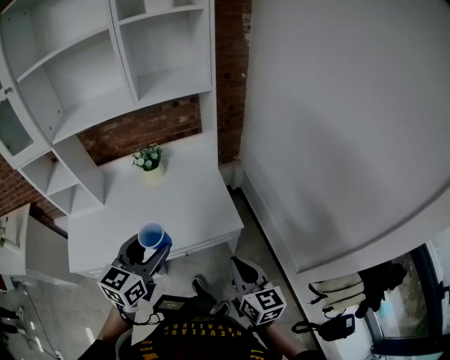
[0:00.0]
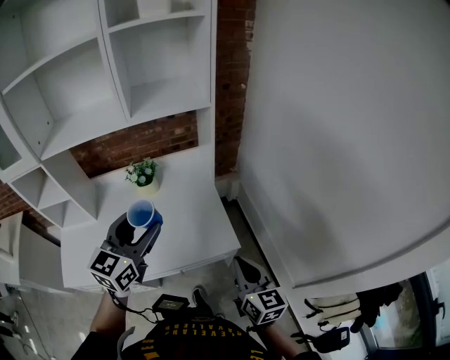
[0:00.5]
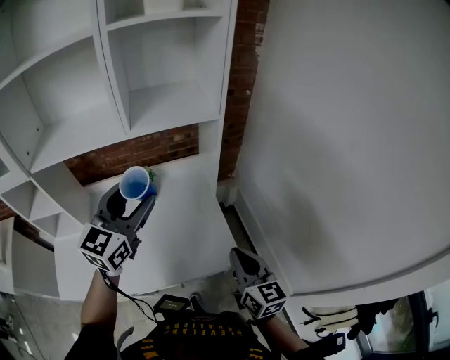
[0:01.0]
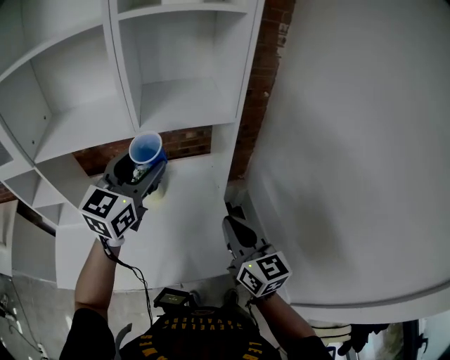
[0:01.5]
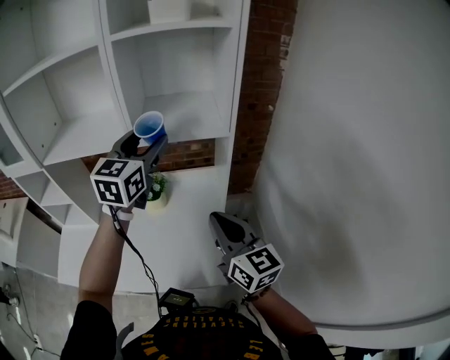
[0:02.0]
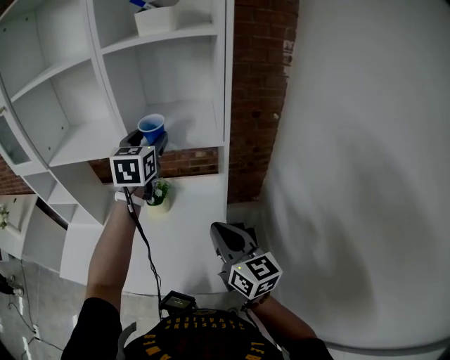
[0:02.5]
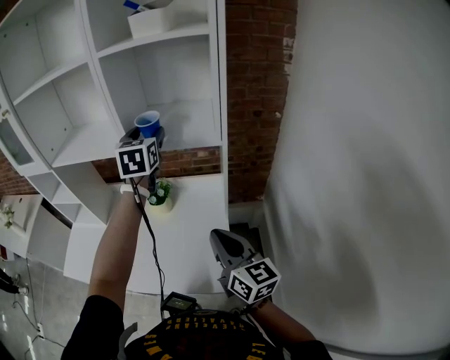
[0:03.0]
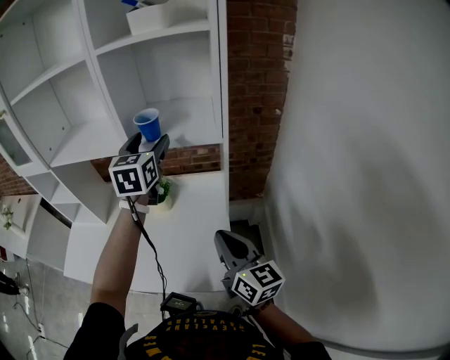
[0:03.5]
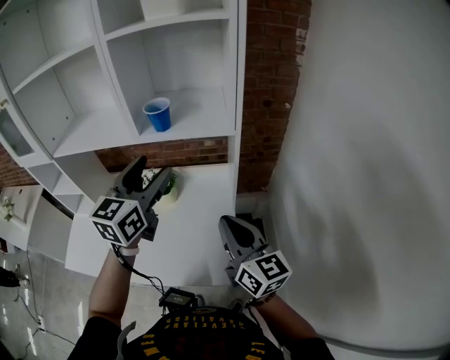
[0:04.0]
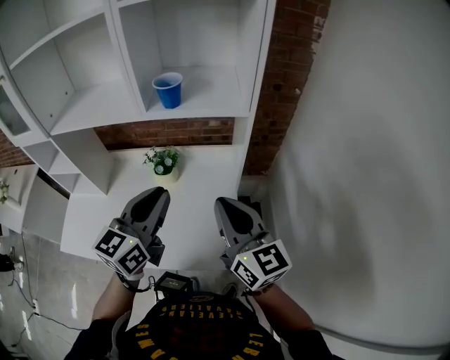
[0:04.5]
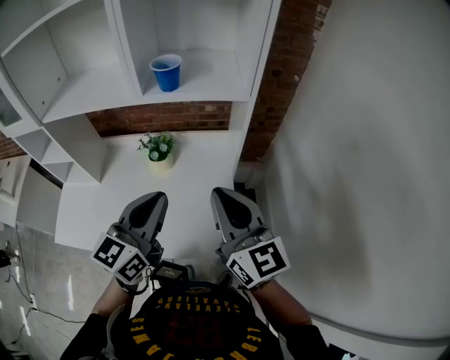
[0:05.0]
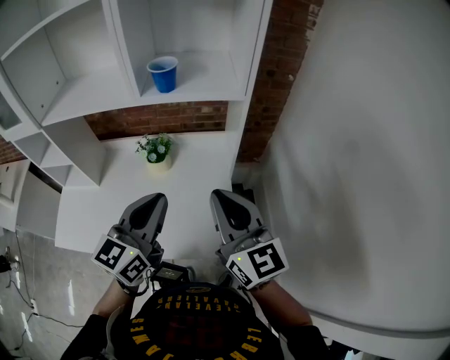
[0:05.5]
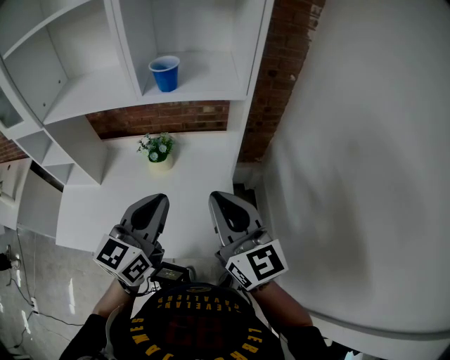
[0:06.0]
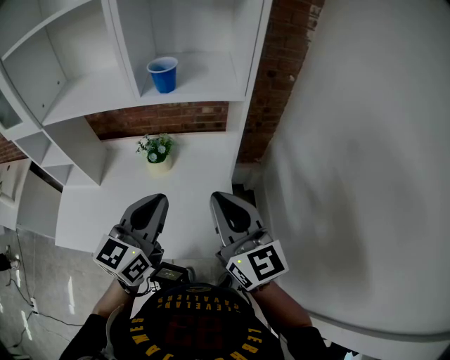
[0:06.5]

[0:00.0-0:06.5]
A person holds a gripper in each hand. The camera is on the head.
0:00.0 to 0:02.0: The two grippers go approximately 40 cm forward and upward. The right gripper turns by some 20 degrees. The left gripper changes its angle by roughly 20 degrees.
0:02.0 to 0:04.5: The left gripper heads backward and downward, covering roughly 20 cm, and closes up.
0:04.5 to 0:06.5: The grippers move only a little.

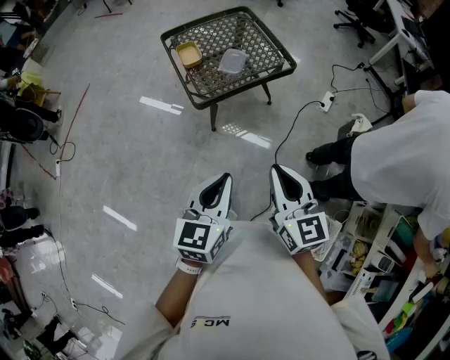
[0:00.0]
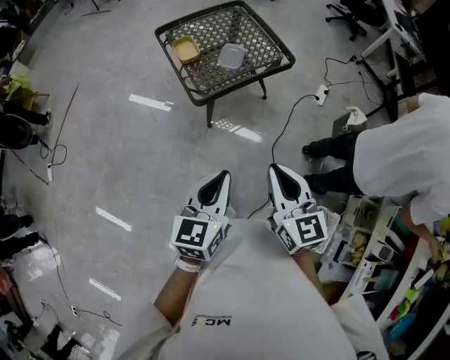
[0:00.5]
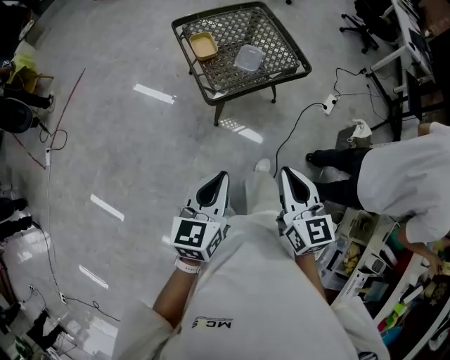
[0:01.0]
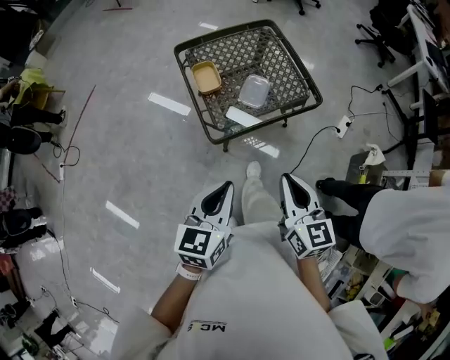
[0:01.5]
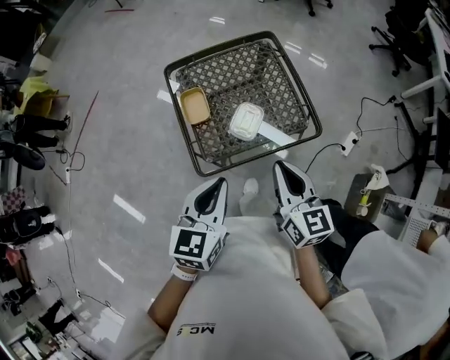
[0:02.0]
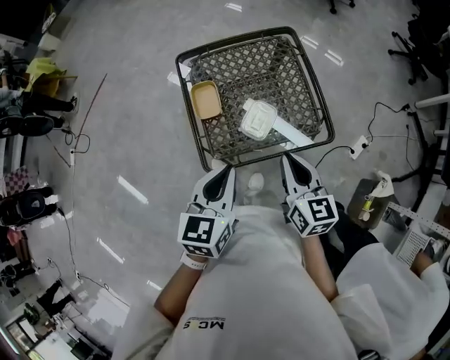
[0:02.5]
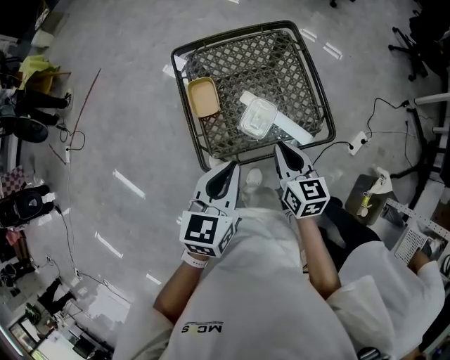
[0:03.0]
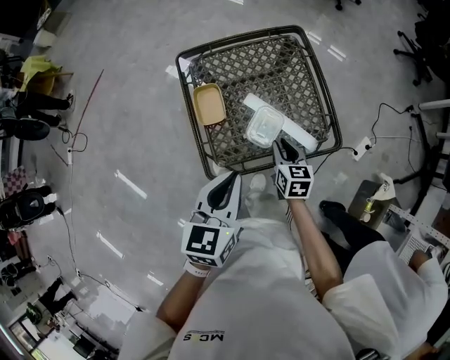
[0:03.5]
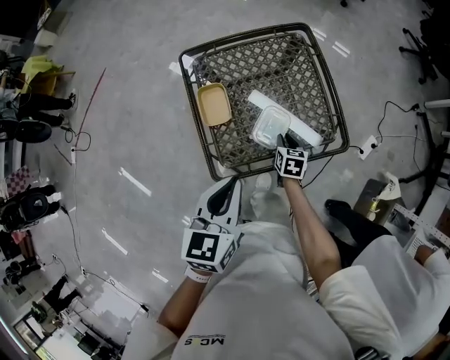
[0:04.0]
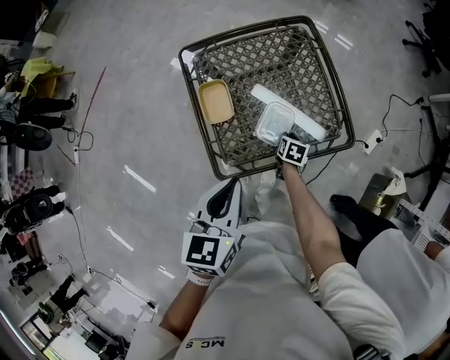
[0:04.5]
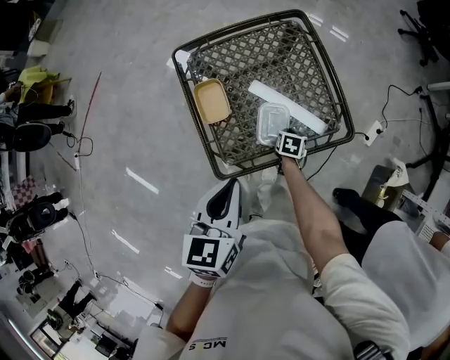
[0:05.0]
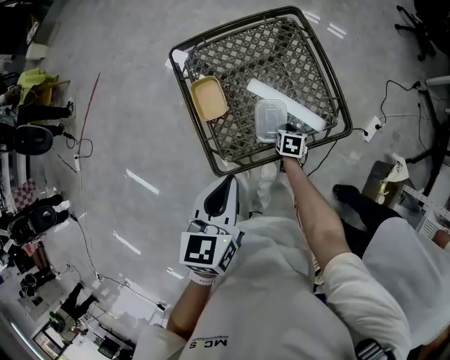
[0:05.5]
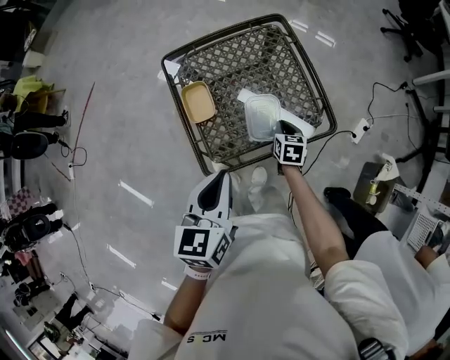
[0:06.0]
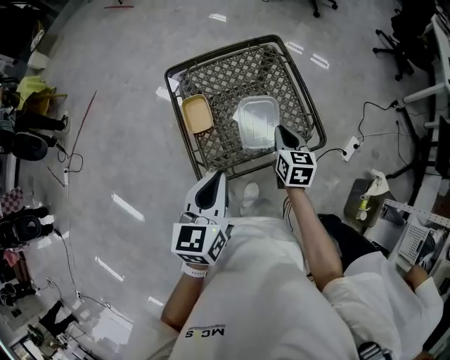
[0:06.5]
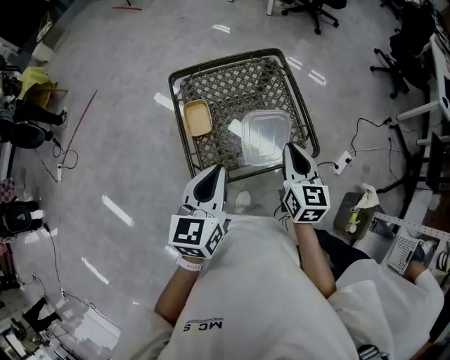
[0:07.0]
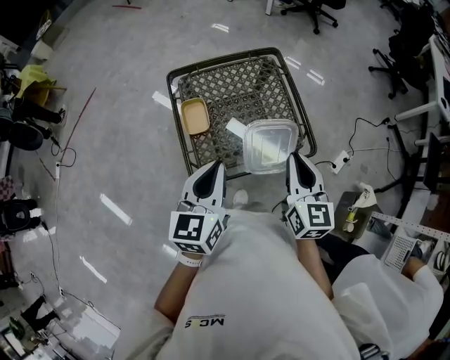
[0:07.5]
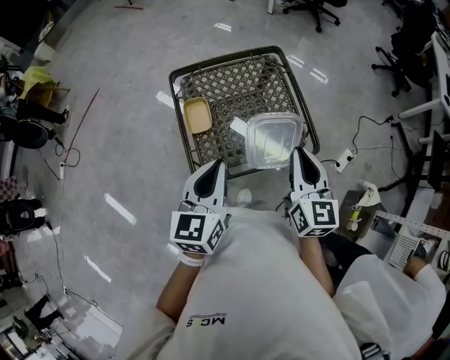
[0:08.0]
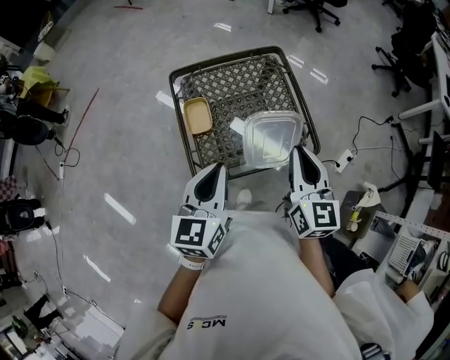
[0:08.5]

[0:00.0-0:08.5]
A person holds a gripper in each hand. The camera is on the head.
0:00.0 to 0:02.0: Both grippers travel together forward, about 40 cm.
0:02.0 to 0:04.0: The right gripper shifts some 35 cm downward and forward, and angles its fingers downward, by approximately 40 degrees, while the left gripper moves forward, roughly 10 cm.
0:04.0 to 0:06.5: The right gripper shifts approximately 15 cm upward.
0:06.5 to 0:08.5: The right gripper is displaced upward and backward by about 20 cm, and swivels some 20 degrees.

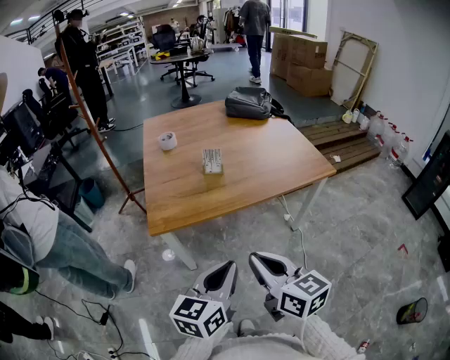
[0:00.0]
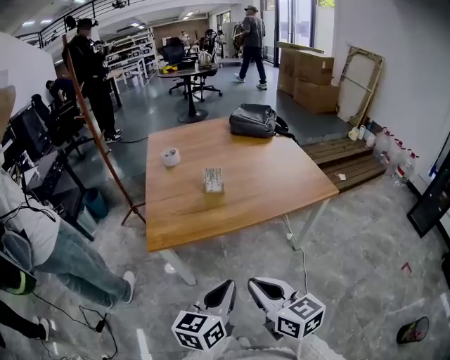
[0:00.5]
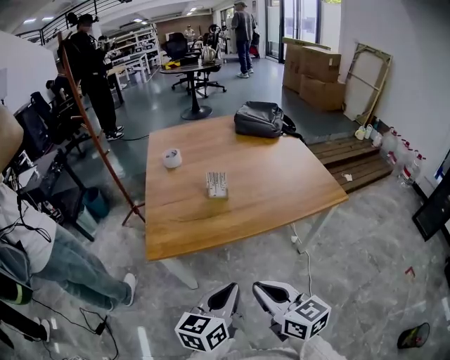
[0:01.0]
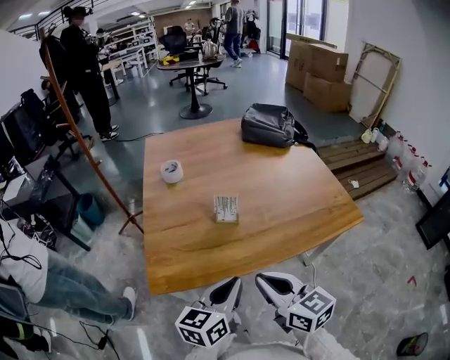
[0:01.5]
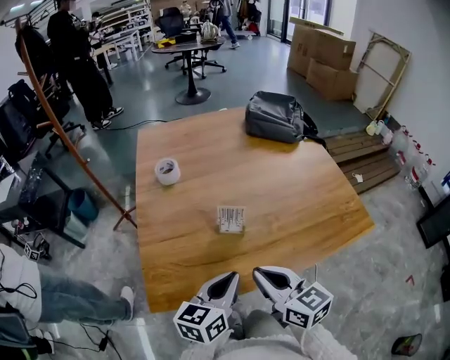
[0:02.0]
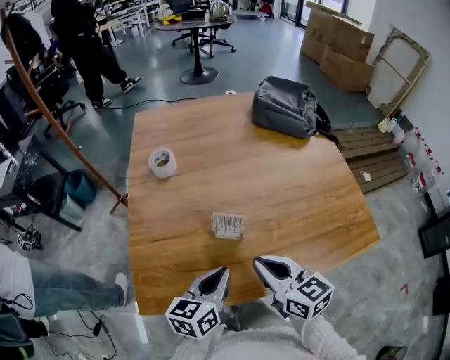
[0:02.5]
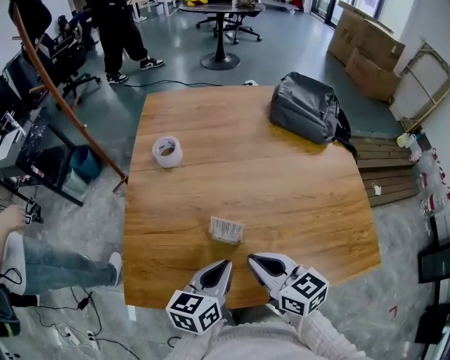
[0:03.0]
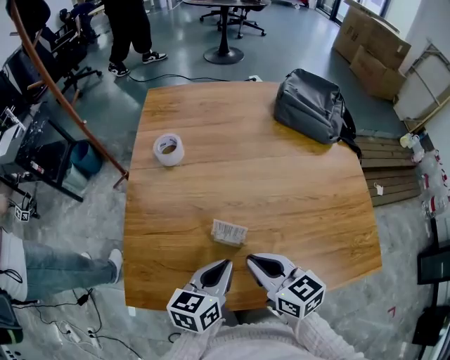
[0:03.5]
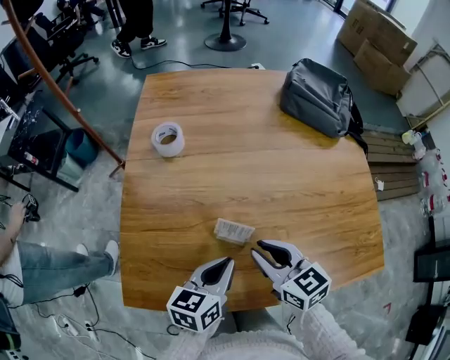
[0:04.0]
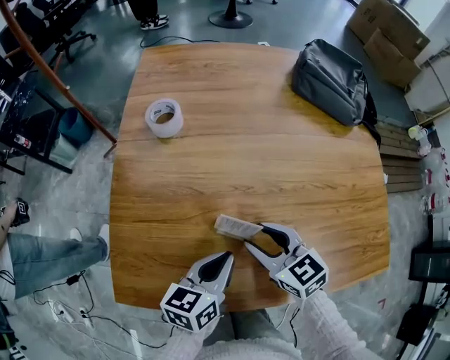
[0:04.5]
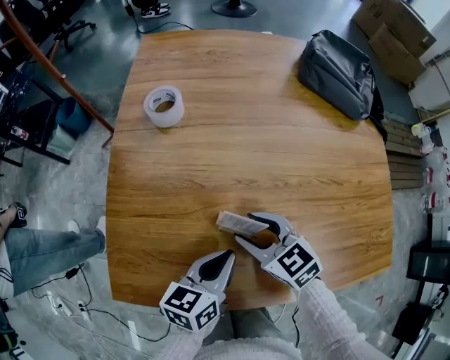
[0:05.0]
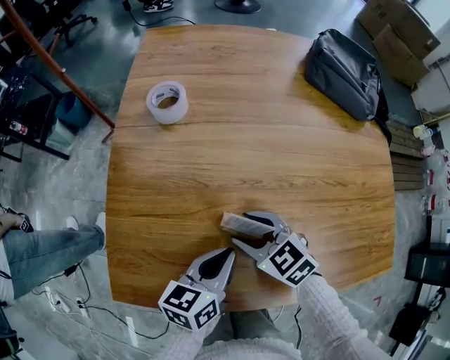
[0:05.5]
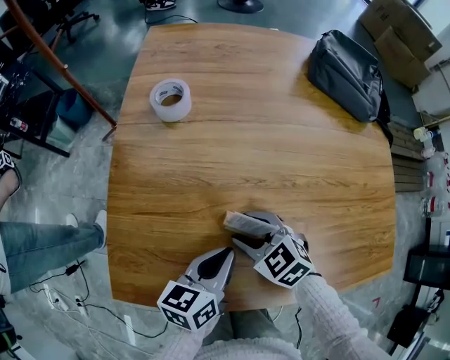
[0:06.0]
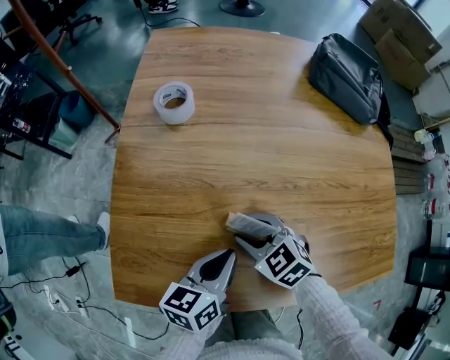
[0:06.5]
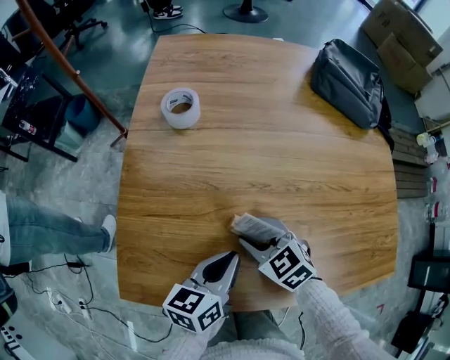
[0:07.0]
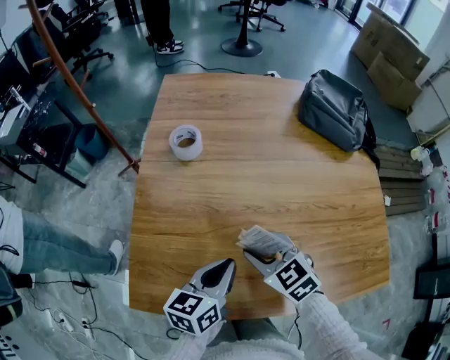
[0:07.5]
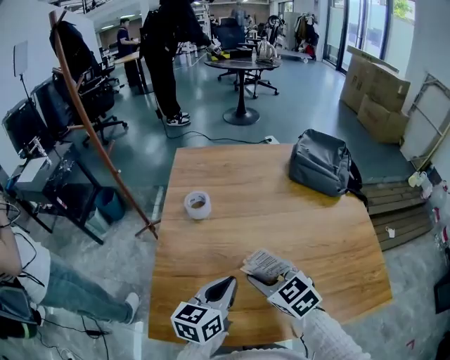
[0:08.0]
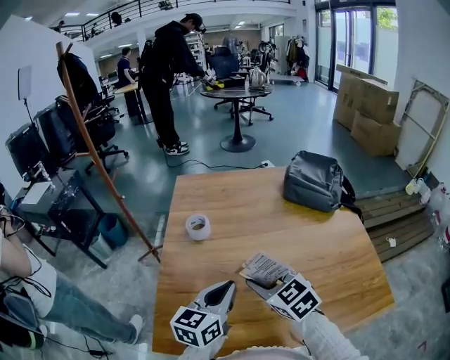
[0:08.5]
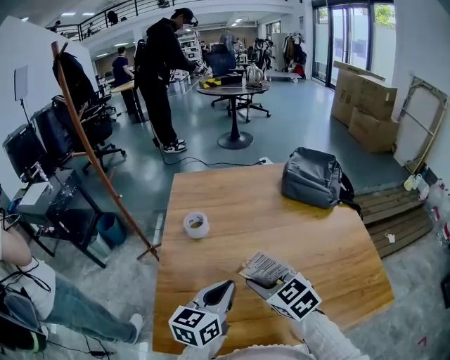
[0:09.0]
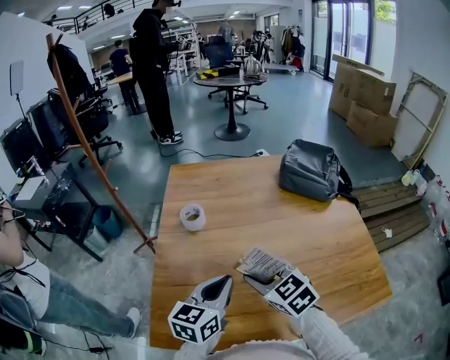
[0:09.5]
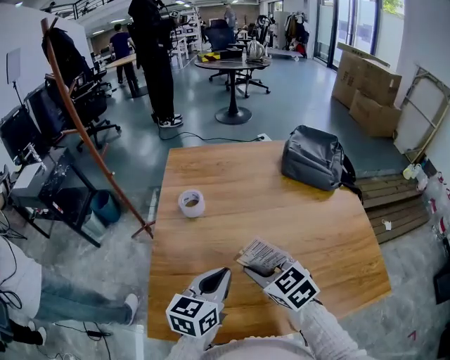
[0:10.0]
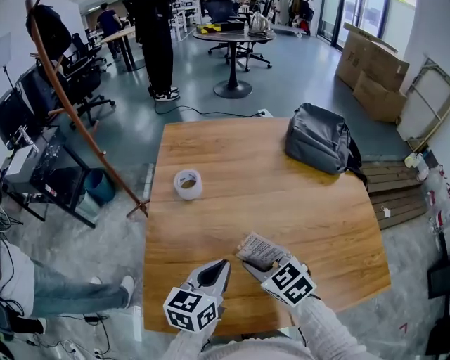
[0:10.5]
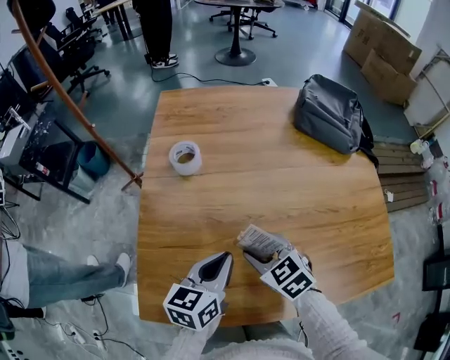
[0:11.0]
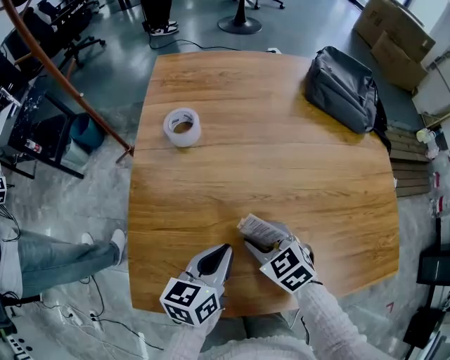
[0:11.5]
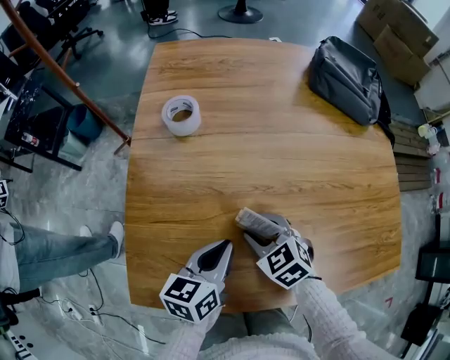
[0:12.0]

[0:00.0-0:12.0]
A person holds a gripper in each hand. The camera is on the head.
0:00.0 to 0:02.0: Both grippers travel together forward, about 35 cm.
0:02.0 to 0:04.0: Both grippers move forward and downward, some 15 cm.
0:04.0 to 0:06.0: The right gripper moves downward and to the left, some 15 cm, turns by about 40 degrees, and opens, while the left gripper is displaced downward by about 5 cm.
0:06.0 to 0:08.0: The two grippers go roughly 15 cm upward.
0:08.0 to 0:10.0: The grippers move only a little.
0:10.0 to 0:12.0: Both grippers travel together downward, approximately 15 cm. The left gripper turns by about 20 degrees.
